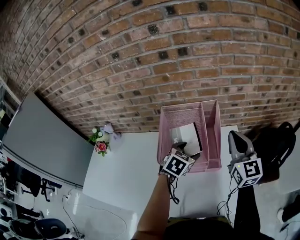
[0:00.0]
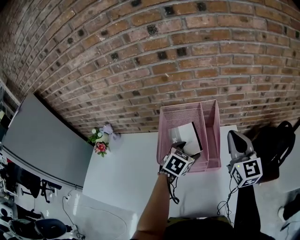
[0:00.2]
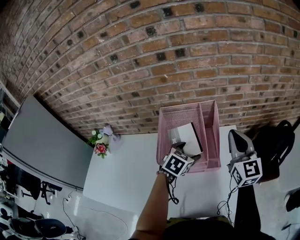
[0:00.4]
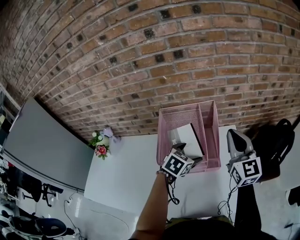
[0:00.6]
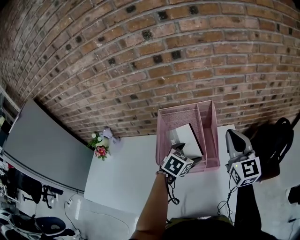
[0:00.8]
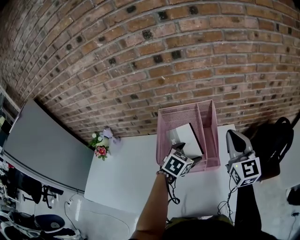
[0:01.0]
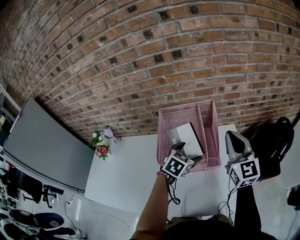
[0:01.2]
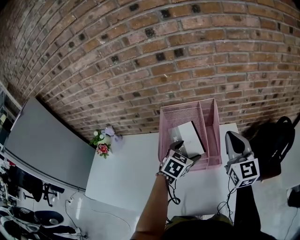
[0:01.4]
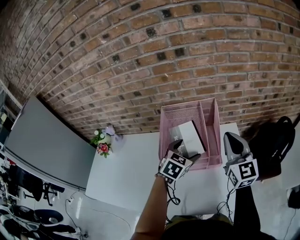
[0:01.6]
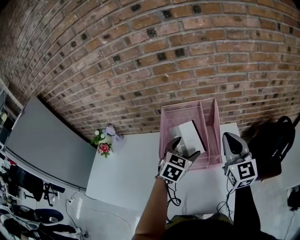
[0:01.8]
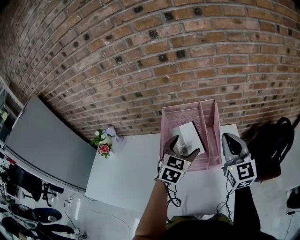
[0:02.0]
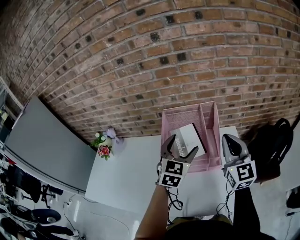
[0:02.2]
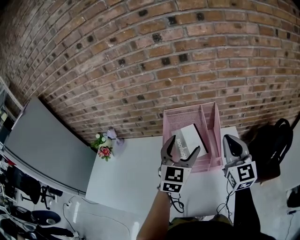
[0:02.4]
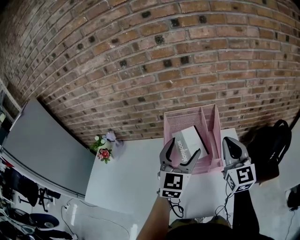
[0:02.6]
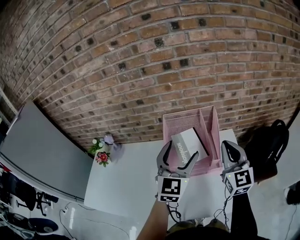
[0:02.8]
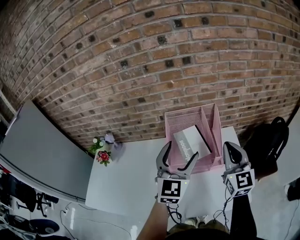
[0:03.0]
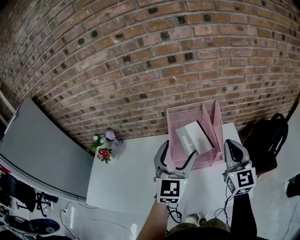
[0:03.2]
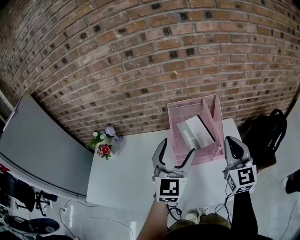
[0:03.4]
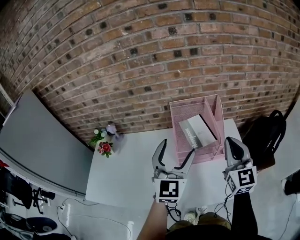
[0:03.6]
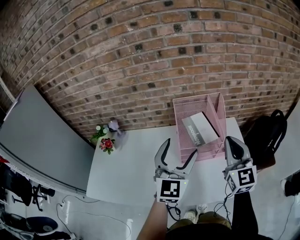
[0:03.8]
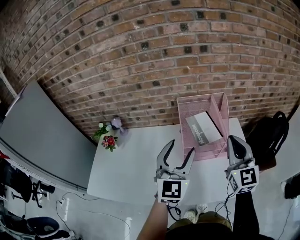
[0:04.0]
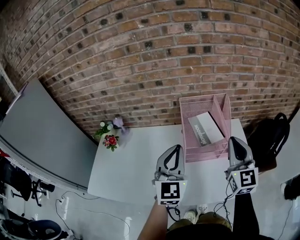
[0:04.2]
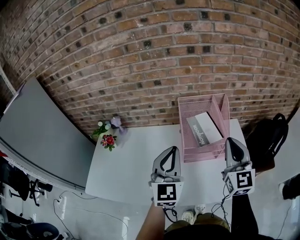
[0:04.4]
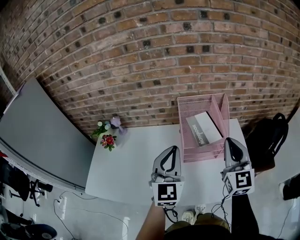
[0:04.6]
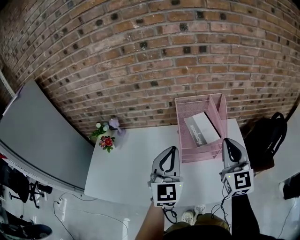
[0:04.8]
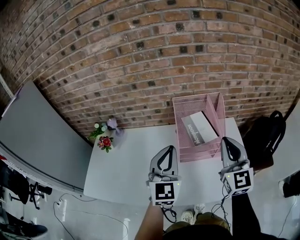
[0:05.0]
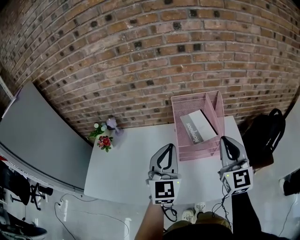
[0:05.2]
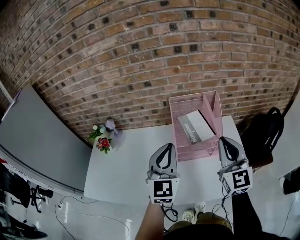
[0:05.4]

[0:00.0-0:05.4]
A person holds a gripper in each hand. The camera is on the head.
0:00.0 to 0:01.4: The grippers stay close to where they were, moving slightly.
0:01.4 to 0:02.8: The left gripper is displaced upward by about 15 cm, and tilts its fingers roughly 40 degrees upward; the right gripper shifts by roughly 5 cm.
0:02.8 to 0:04.0: The left gripper travels to the left and backward by roughly 15 cm. The right gripper heads backward and to the left, covering approximately 10 cm.
0:04.0 to 0:05.4: The left gripper closes its fingers.

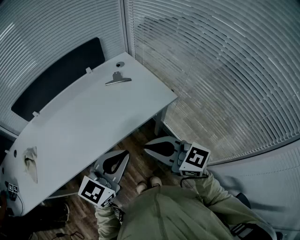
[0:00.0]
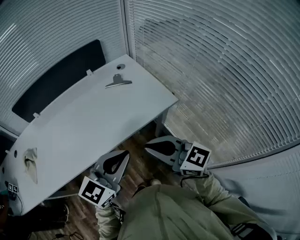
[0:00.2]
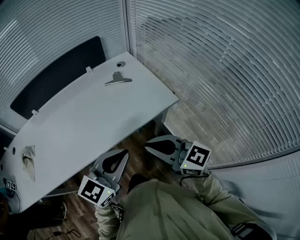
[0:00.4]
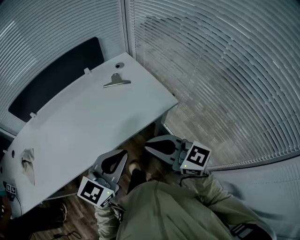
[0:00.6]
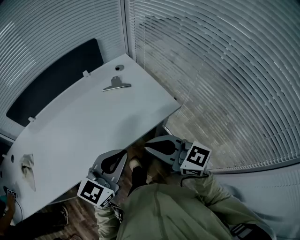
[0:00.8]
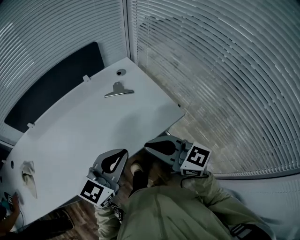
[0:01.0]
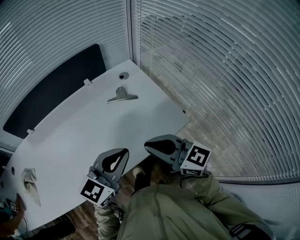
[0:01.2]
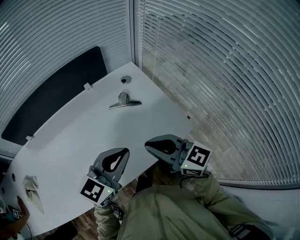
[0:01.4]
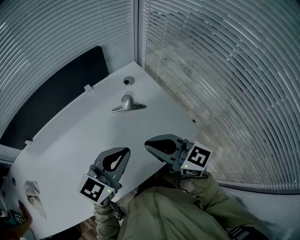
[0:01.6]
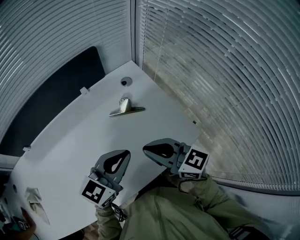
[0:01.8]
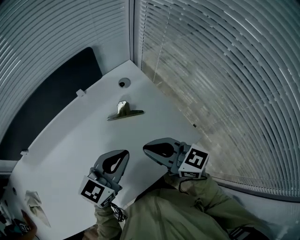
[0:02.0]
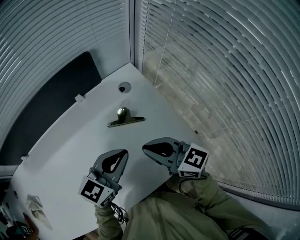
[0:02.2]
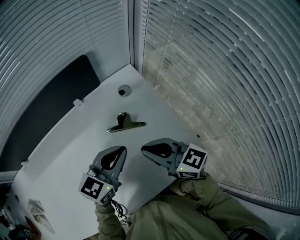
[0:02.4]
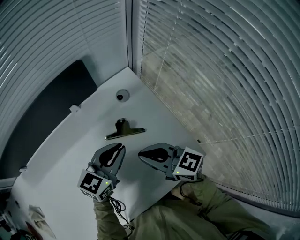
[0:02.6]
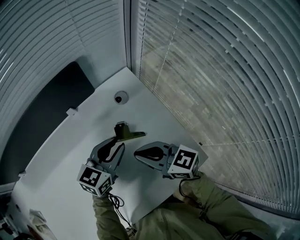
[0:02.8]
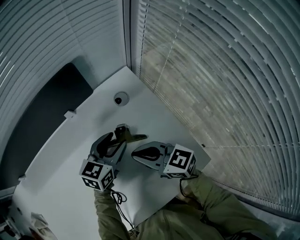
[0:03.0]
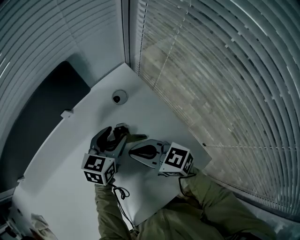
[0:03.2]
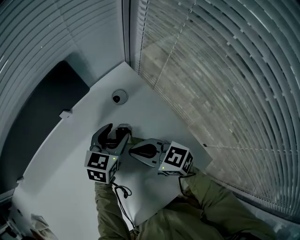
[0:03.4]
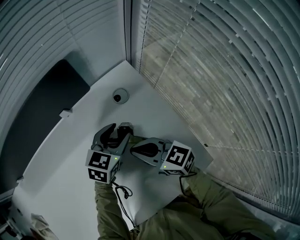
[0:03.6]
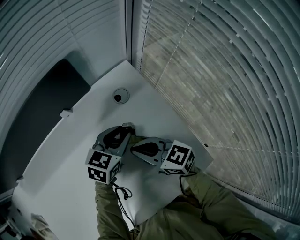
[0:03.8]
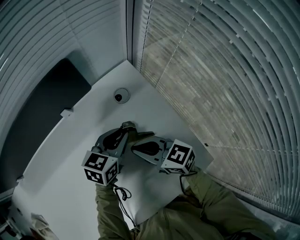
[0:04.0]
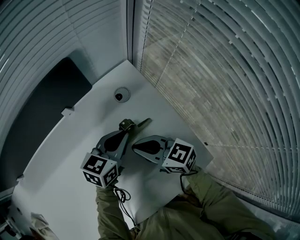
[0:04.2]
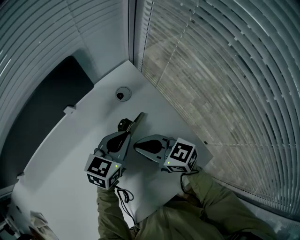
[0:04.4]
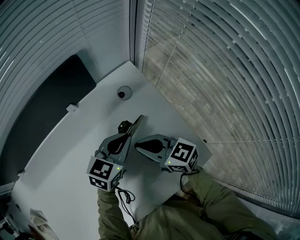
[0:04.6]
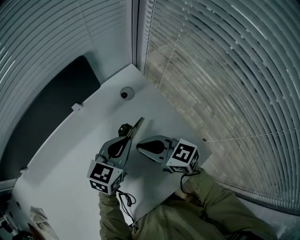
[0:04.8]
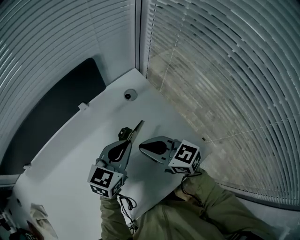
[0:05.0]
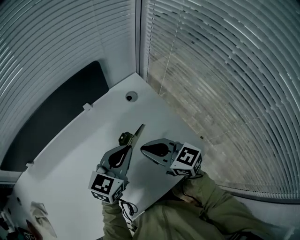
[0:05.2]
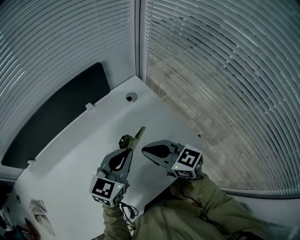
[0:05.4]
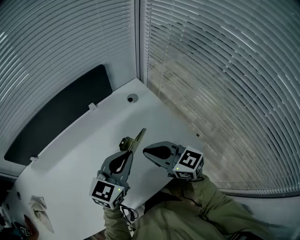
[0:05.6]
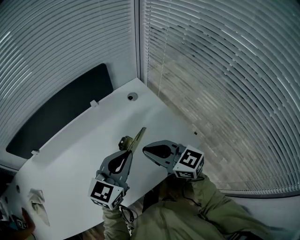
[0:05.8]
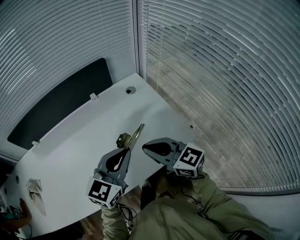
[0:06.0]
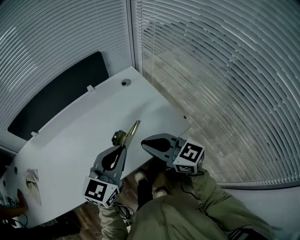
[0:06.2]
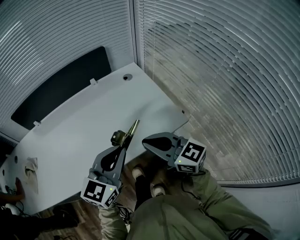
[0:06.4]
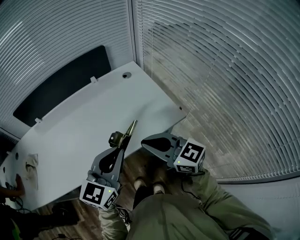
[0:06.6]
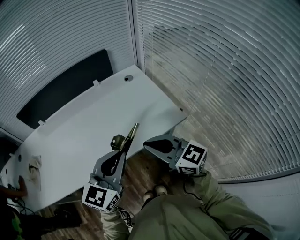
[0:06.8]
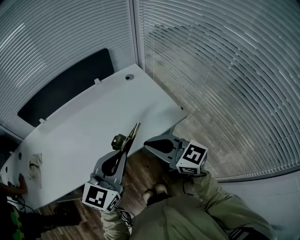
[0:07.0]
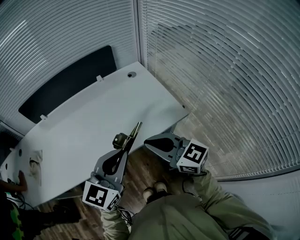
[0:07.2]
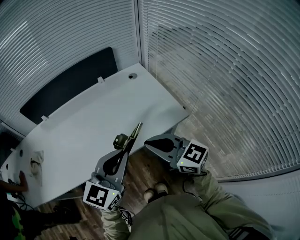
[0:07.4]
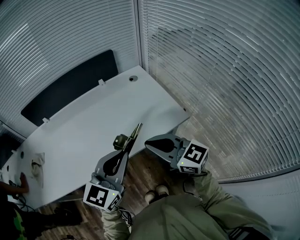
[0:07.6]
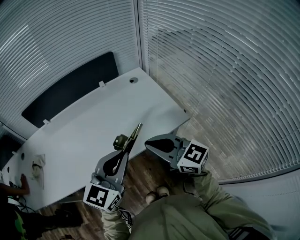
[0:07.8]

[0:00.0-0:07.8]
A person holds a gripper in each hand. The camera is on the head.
0:00.0 to 0:01.6: Both grippers move forward, some 25 cm.
0:01.6 to 0:03.2: Both grippers move forward and downward, about 25 cm. The left gripper changes its angle by some 30 degrees, and opens, while the right gripper rotates roughly 20 degrees.
0:03.2 to 0:04.6: The left gripper changes place by some 5 cm, and closes its fingers.
0:04.6 to 0:06.2: The grippers both shift backward and upward by approximately 30 cm. The left gripper turns by approximately 30 degrees.
0:06.2 to 0:07.8: The grippers both shift backward by roughly 10 cm.

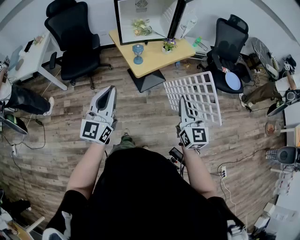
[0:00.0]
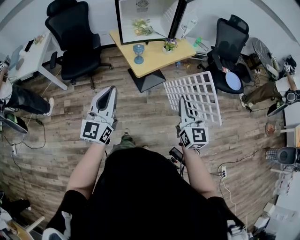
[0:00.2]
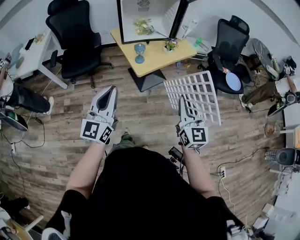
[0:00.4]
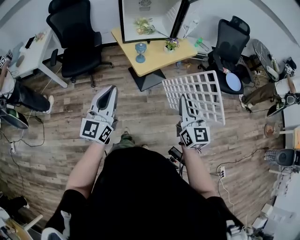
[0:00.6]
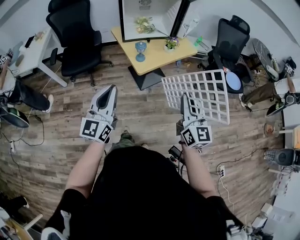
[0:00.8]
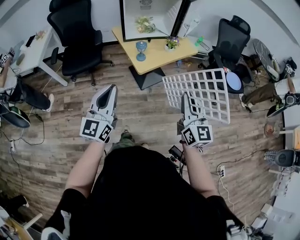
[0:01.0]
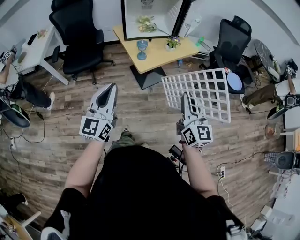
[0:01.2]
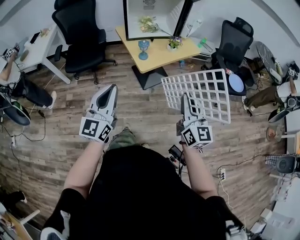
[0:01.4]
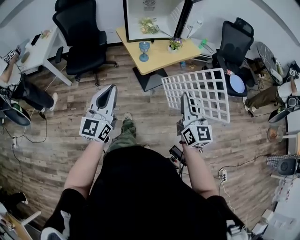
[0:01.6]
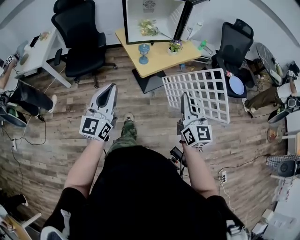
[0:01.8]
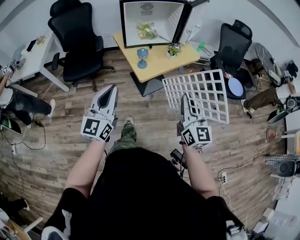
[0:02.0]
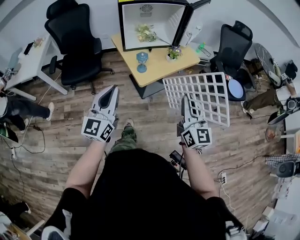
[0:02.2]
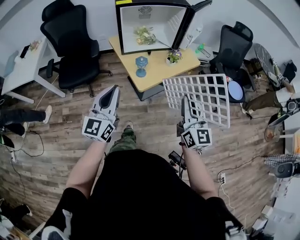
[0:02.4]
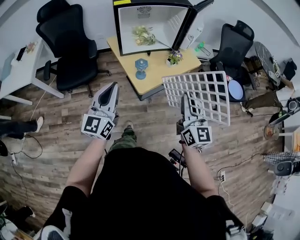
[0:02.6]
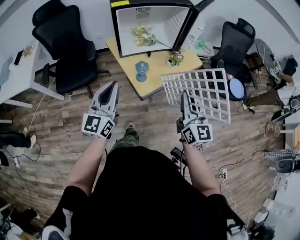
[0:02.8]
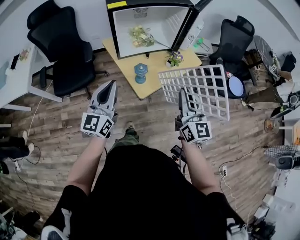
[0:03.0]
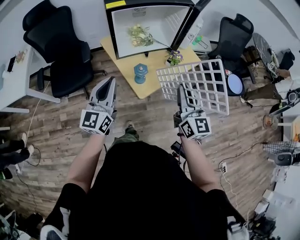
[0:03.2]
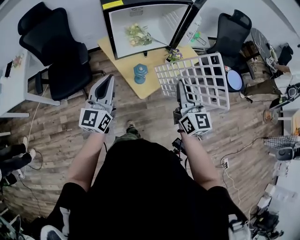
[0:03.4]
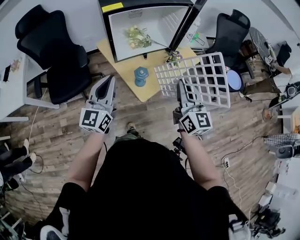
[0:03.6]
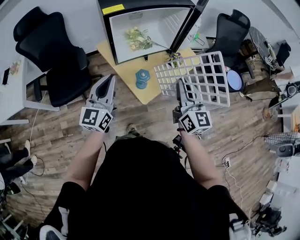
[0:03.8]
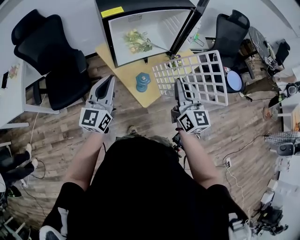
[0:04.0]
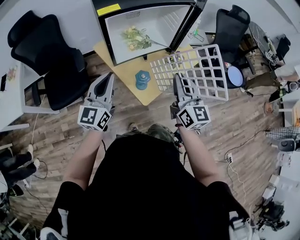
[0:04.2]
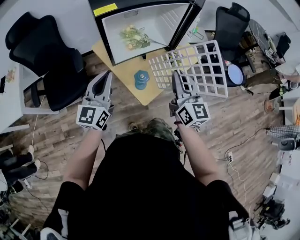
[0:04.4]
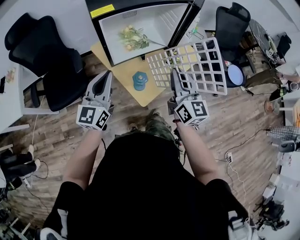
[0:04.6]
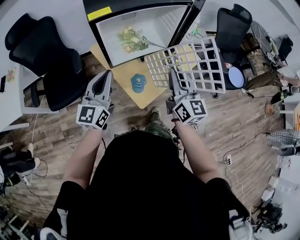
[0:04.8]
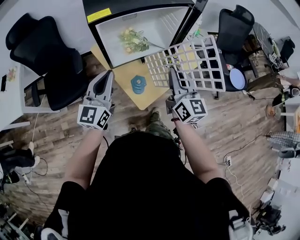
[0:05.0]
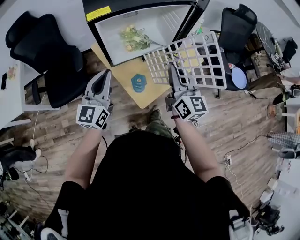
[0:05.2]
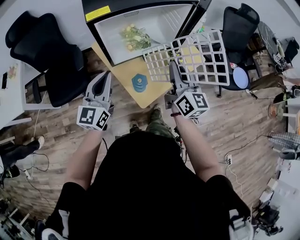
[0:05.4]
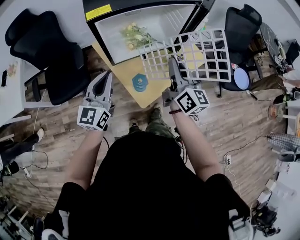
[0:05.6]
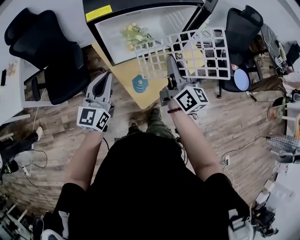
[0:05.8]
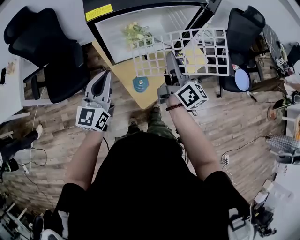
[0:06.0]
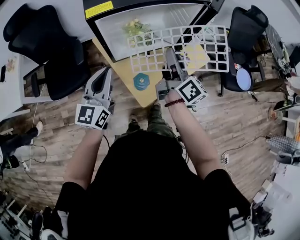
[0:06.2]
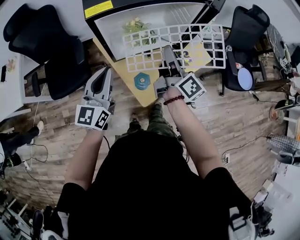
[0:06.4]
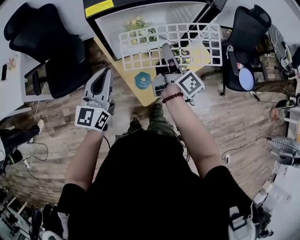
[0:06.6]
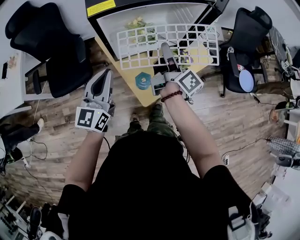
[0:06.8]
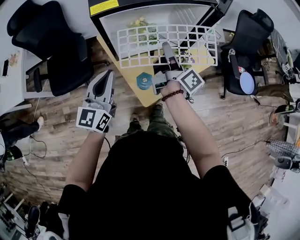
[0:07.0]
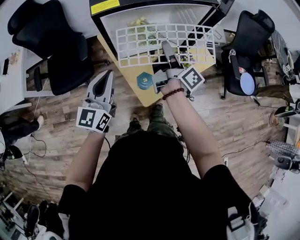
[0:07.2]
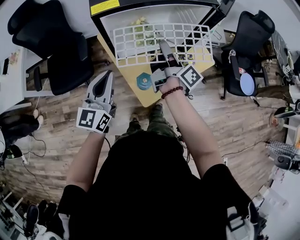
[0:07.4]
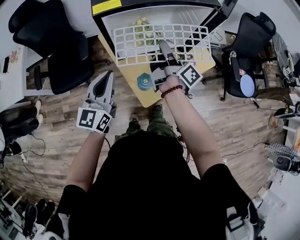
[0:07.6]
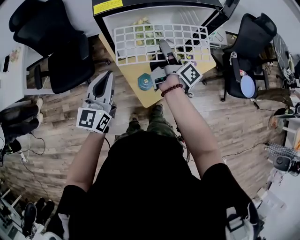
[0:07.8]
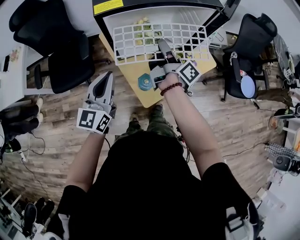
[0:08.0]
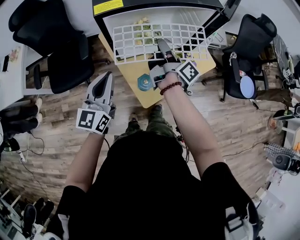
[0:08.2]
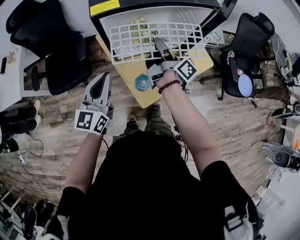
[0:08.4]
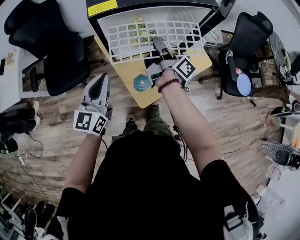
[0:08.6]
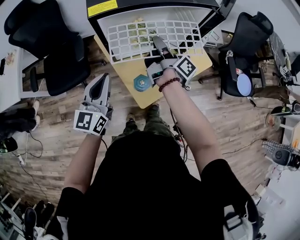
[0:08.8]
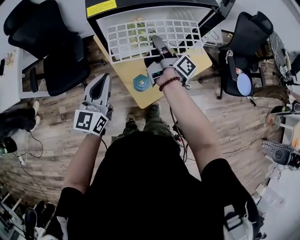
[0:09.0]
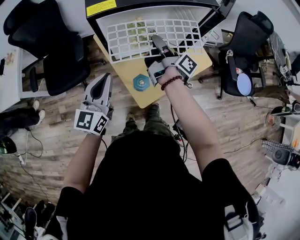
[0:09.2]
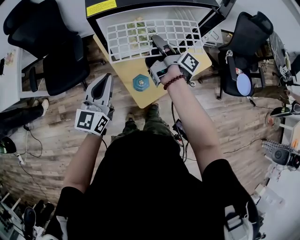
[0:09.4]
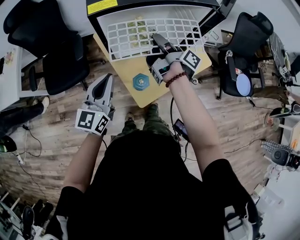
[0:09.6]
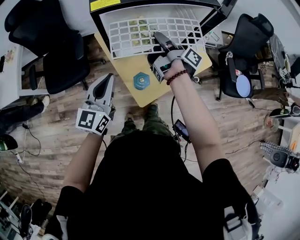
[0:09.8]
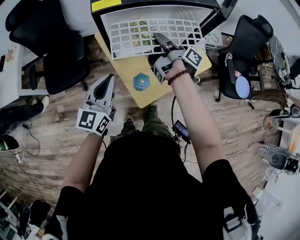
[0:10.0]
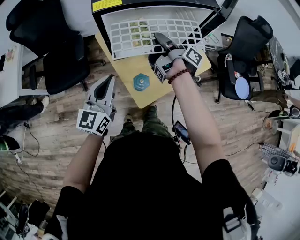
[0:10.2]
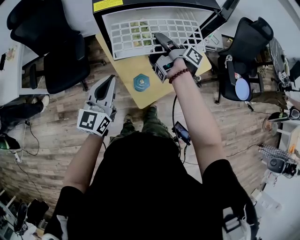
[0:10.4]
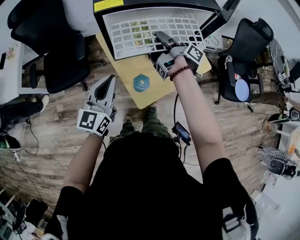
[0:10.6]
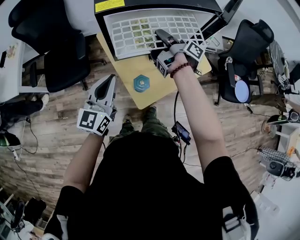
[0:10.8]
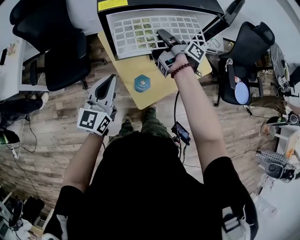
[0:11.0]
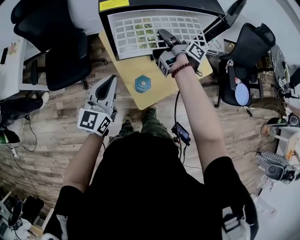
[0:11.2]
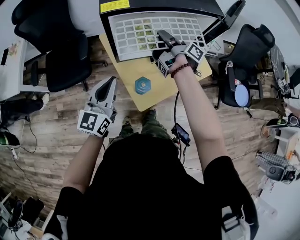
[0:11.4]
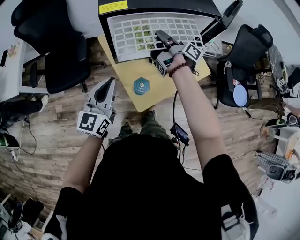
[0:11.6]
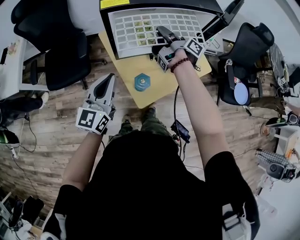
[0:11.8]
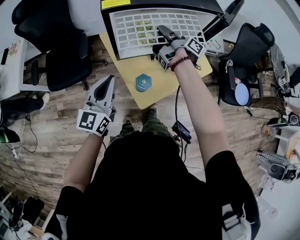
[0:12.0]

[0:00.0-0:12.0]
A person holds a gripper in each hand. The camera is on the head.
0:00.0 to 0:01.6: The grippers make only small movements.
0:01.6 to 0:03.0: The grippers both shift forward by about 25 cm.
0:03.0 to 0:04.4: The right gripper shifts some 15 cm forward and to the left. The left gripper goes some 10 cm forward.
0:04.4 to 0:06.0: The right gripper travels forward by about 10 cm, and swivels roughly 30 degrees. Meanwhile the left gripper moves some 5 cm.
0:06.0 to 0:07.6: The right gripper is displaced forward and to the left by some 10 cm, and turns by approximately 40 degrees.
0:07.6 to 0:09.0: The grippers stay close to where they were, moving slightly.
0:09.0 to 0:10.4: The grippers make only small movements.
0:10.4 to 0:12.0: There are only small adjustments of the grippers.
